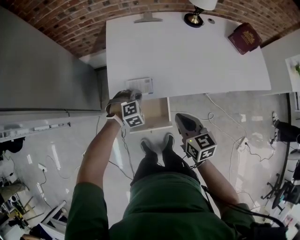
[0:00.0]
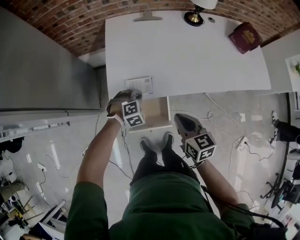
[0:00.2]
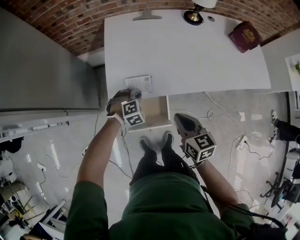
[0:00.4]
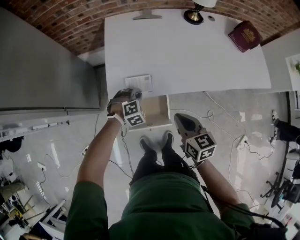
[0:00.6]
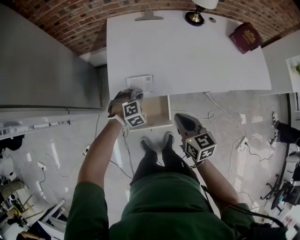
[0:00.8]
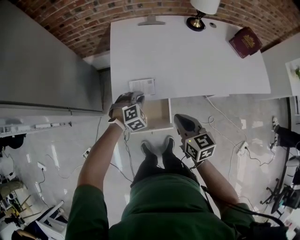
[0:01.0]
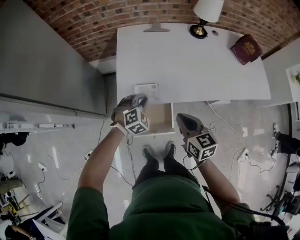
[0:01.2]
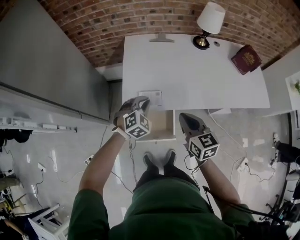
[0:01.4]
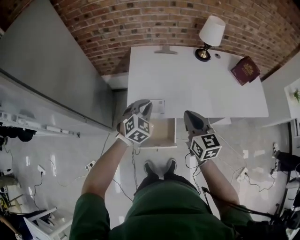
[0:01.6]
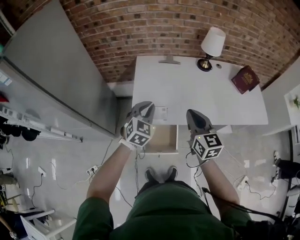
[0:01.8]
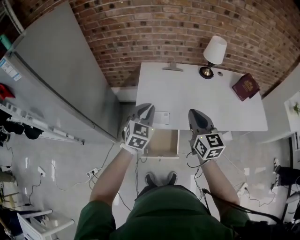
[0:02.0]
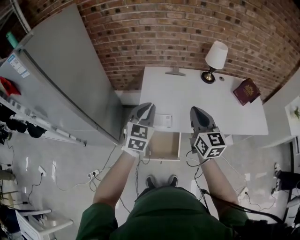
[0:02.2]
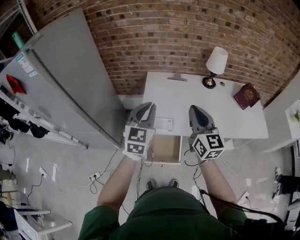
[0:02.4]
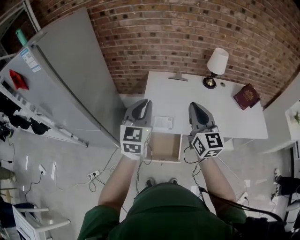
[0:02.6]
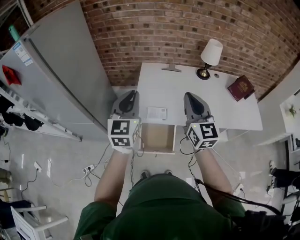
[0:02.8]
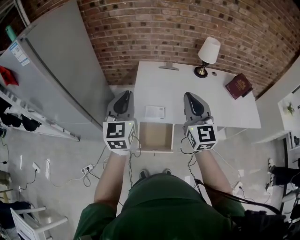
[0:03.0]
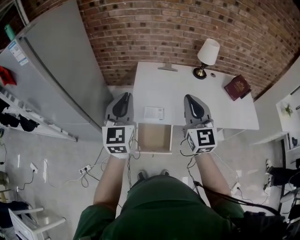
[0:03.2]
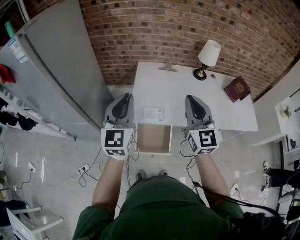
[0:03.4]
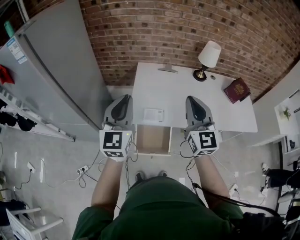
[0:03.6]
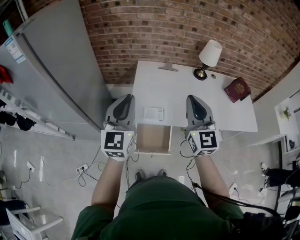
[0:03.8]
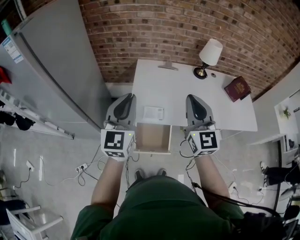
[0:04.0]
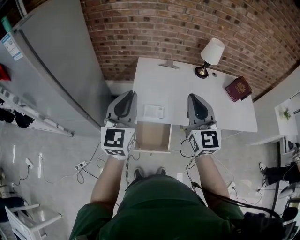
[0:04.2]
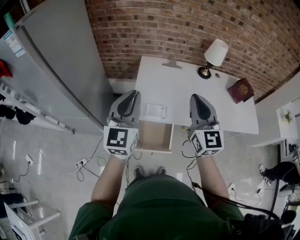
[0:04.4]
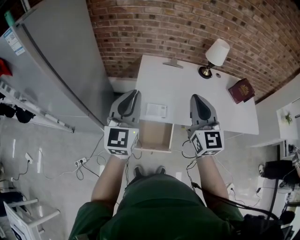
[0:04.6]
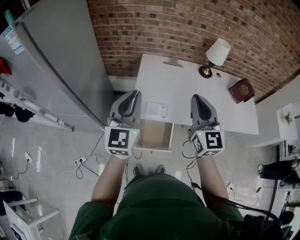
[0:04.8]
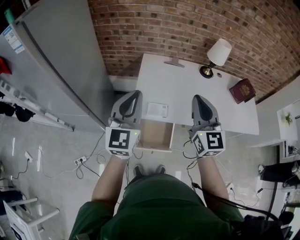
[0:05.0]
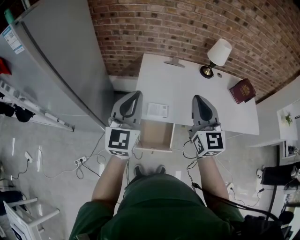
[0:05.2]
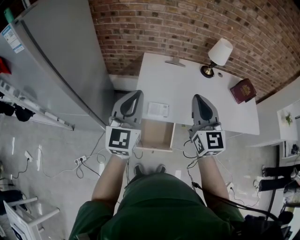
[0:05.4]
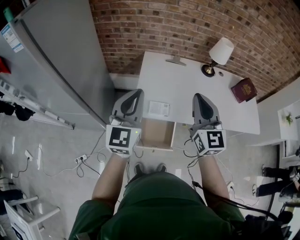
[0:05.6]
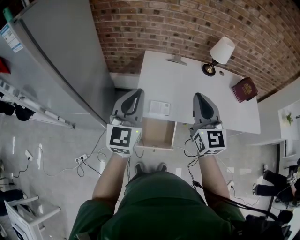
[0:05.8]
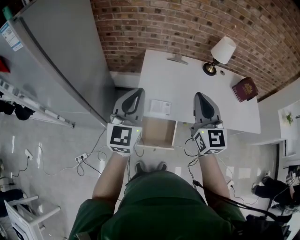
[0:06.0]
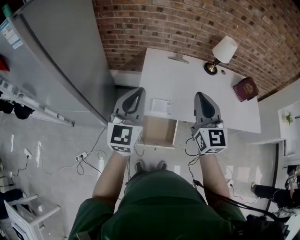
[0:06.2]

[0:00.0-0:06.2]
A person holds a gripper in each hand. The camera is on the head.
0:00.0 to 0:01.6: The right gripper is displaced upward by about 10 cm. Meanwhile the left gripper shifts about 20 cm upward, and turns by some 40 degrees.
0:01.6 to 0:03.2: The left gripper goes about 25 cm upward and to the left, and angles its fingers upward, by some 40 degrees, while the right gripper moves upward, roughly 20 cm, and turns by some 30 degrees.
0:03.2 to 0:04.6: The grippers make only small movements.
0:04.6 to 0:06.2: There are only small adjustments of the grippers.

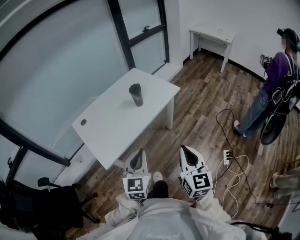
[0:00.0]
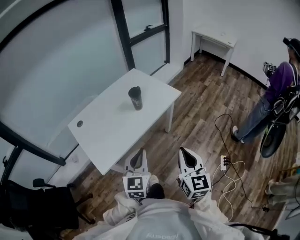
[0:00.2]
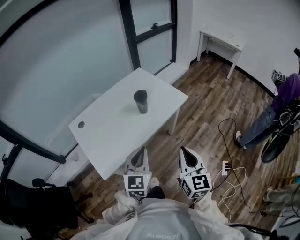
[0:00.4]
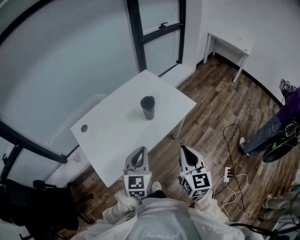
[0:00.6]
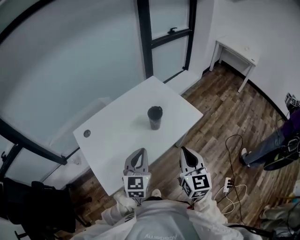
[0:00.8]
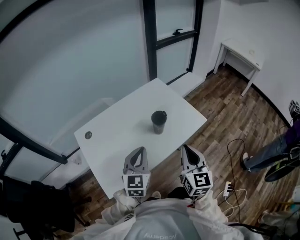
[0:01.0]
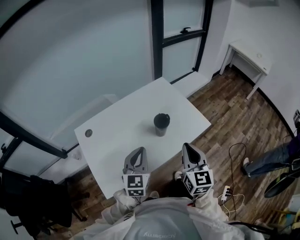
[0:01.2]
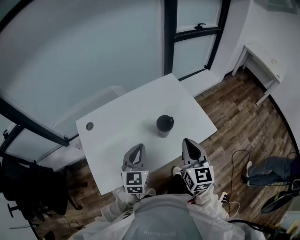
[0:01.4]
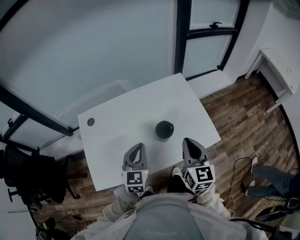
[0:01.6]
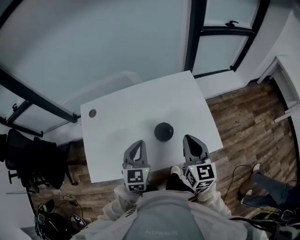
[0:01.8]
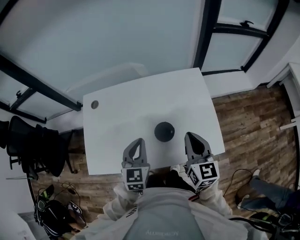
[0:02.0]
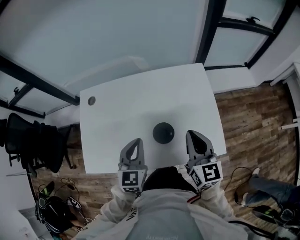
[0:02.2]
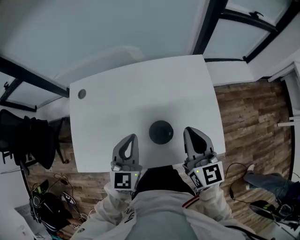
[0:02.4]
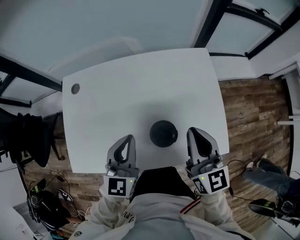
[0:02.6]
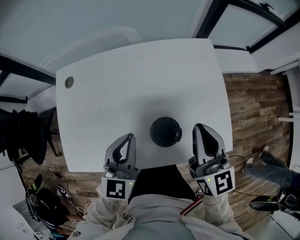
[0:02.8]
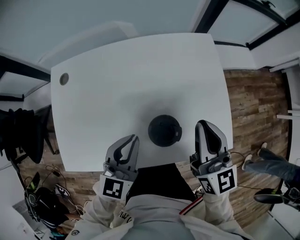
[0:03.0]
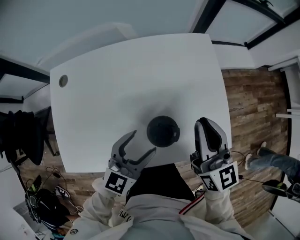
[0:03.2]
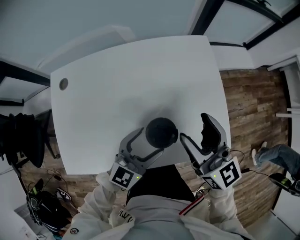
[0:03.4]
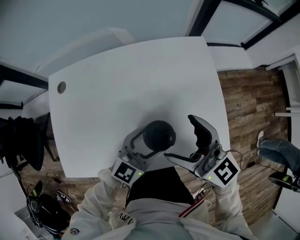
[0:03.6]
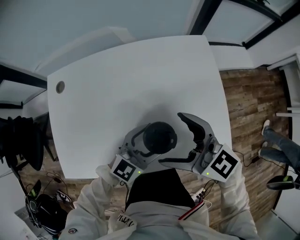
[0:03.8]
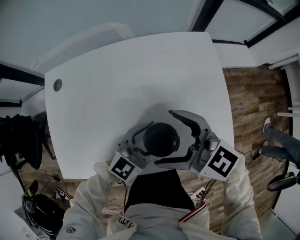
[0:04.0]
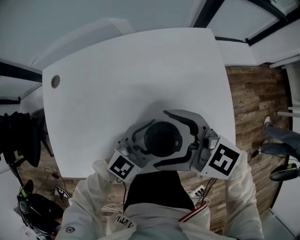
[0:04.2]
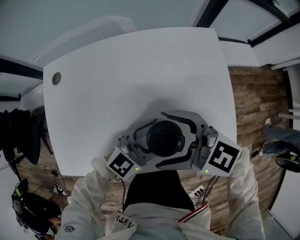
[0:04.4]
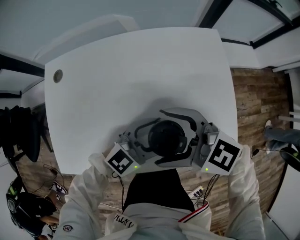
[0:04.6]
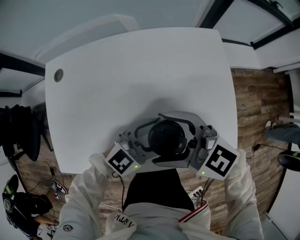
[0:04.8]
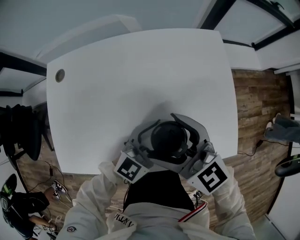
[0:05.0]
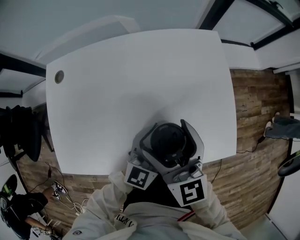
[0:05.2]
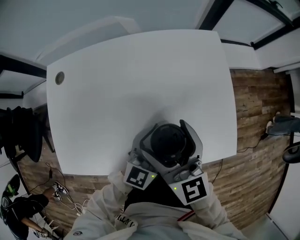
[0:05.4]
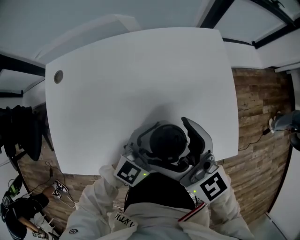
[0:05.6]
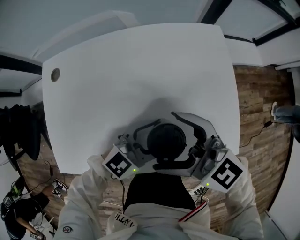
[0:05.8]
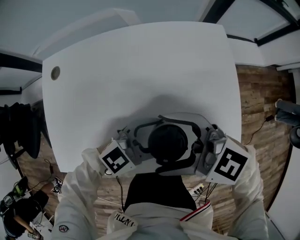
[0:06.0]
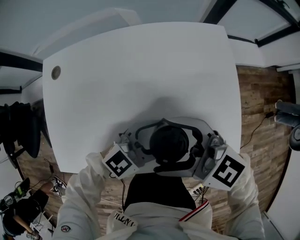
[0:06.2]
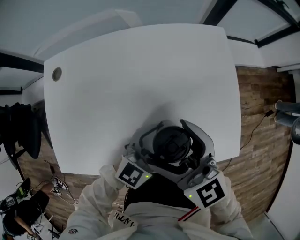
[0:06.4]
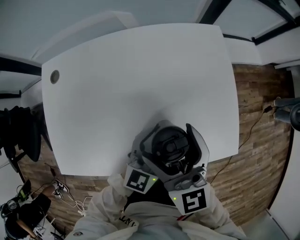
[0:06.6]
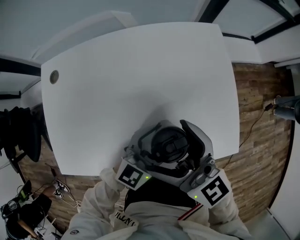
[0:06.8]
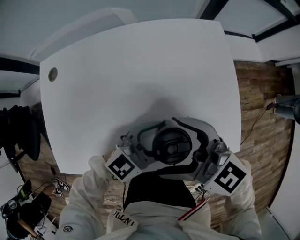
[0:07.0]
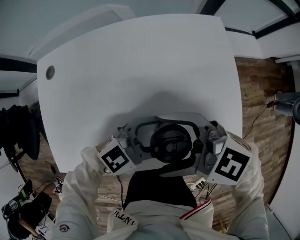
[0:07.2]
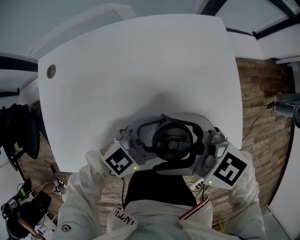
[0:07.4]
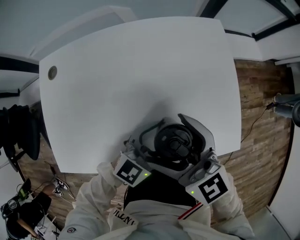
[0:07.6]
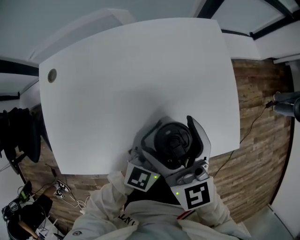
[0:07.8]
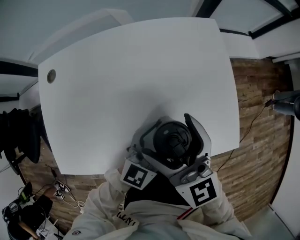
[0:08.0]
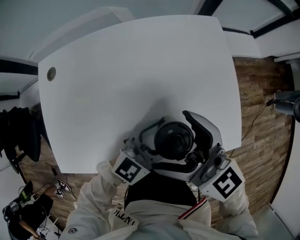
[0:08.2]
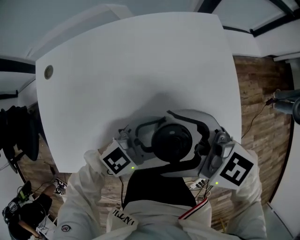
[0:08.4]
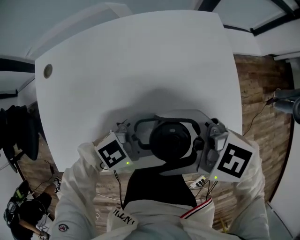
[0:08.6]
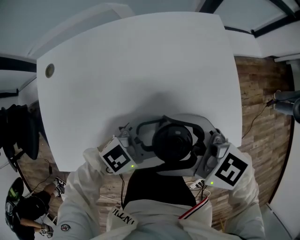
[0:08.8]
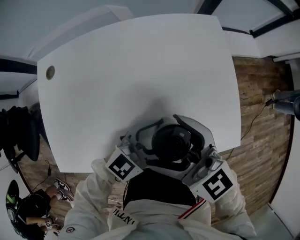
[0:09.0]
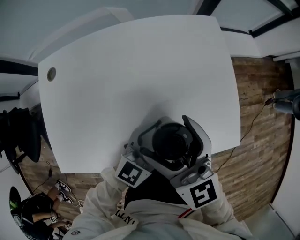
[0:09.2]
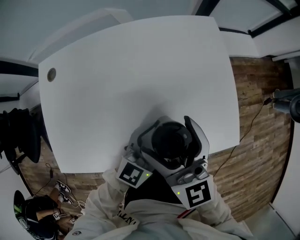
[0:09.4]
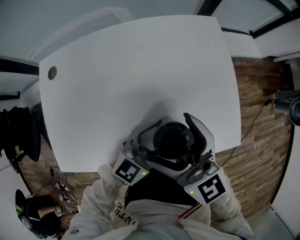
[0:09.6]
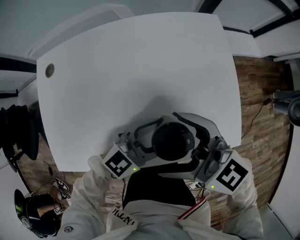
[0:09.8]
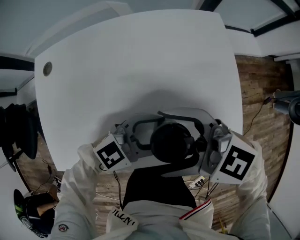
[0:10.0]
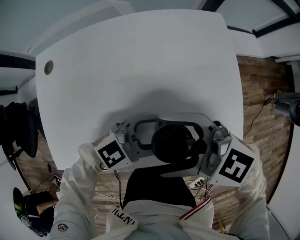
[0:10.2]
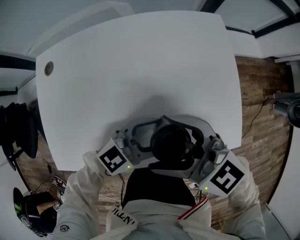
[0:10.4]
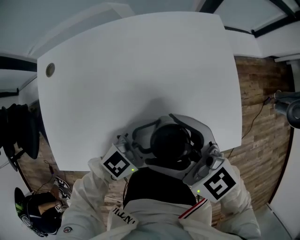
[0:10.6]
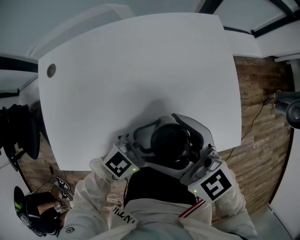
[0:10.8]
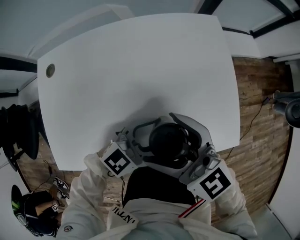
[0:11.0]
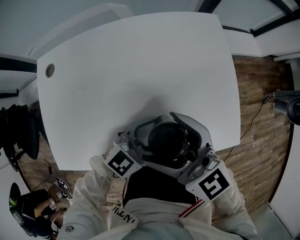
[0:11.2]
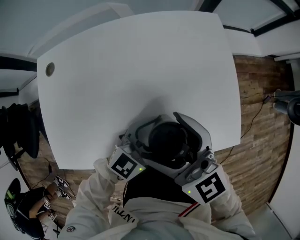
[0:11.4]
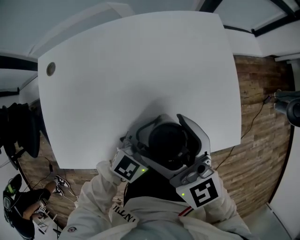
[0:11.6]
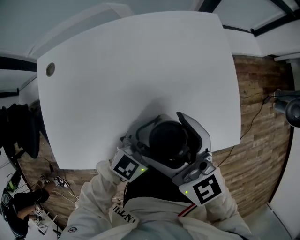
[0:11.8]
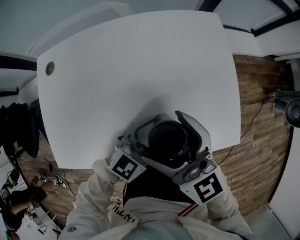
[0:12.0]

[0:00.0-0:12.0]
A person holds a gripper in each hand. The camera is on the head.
0:00.0 to 0:01.6: The two grippers travel together, approximately 50 cm. The left gripper turns by some 30 degrees. The right gripper swivels roughly 30 degrees.
0:01.6 to 0:03.0: The left gripper shifts about 15 cm downward and forward. The right gripper heads forward and downward, covering some 20 cm.
0:03.0 to 0:04.4: The right gripper changes place by approximately 15 cm, changes its angle by about 60 degrees, and opens. The left gripper shifts by some 15 cm, rotates approximately 30 degrees, and opens its fingers.
0:06.0 to 0:07.6: The right gripper changes its angle by about 40 degrees.
0:10.4 to 0:12.0: The right gripper changes its angle by about 30 degrees.

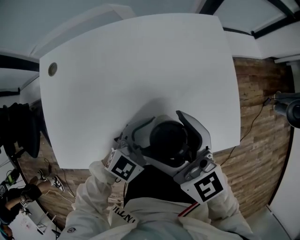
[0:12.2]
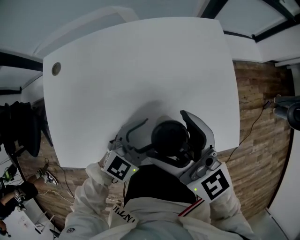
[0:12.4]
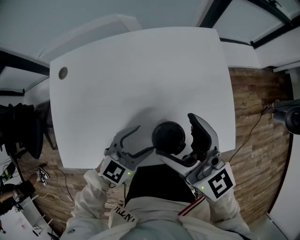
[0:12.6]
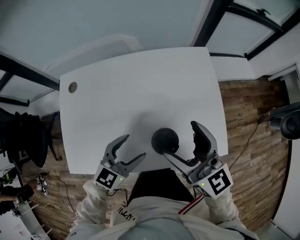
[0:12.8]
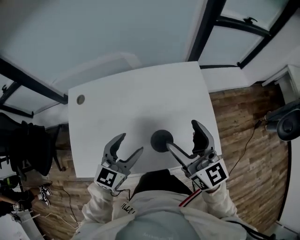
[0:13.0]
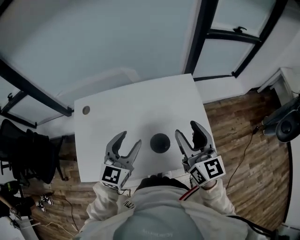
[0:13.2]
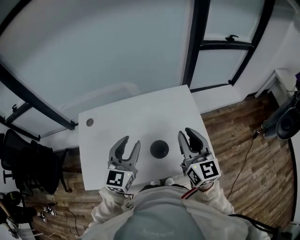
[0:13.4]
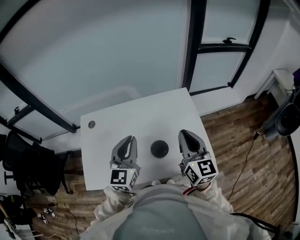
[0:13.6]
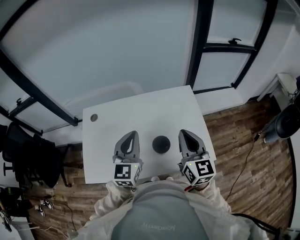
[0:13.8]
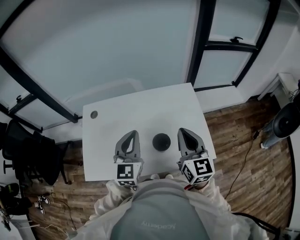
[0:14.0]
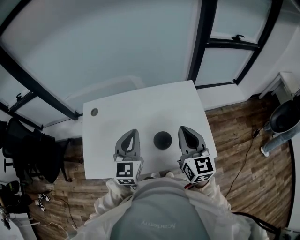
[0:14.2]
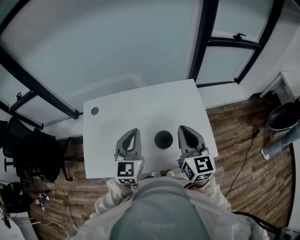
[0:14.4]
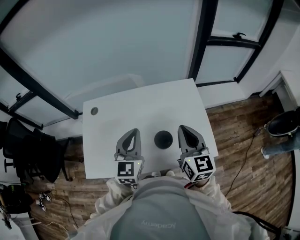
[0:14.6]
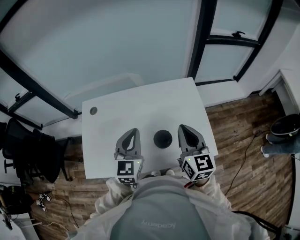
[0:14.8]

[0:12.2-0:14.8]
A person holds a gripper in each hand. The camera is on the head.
0:12.2 to 0:13.4: The left gripper is displaced upward by about 30 cm, rotates some 40 degrees, and closes its fingers, while the right gripper goes roughly 25 cm upward and to the right, changes its angle by approximately 30 degrees, and closes up.
0:13.4 to 0:14.8: The left gripper closes.

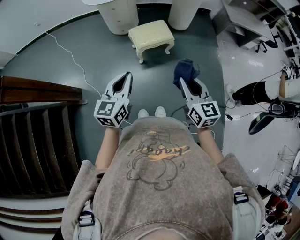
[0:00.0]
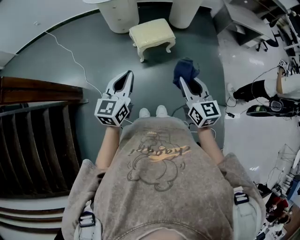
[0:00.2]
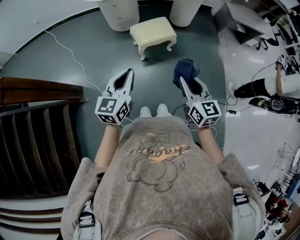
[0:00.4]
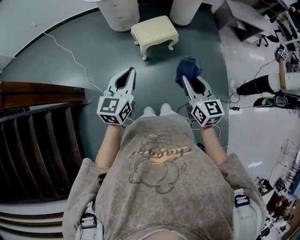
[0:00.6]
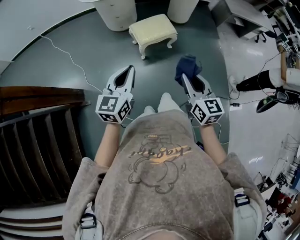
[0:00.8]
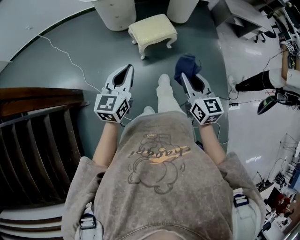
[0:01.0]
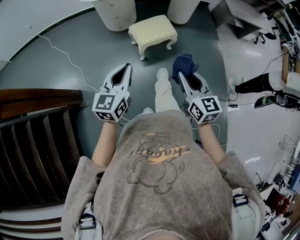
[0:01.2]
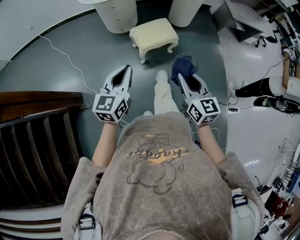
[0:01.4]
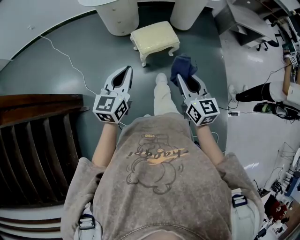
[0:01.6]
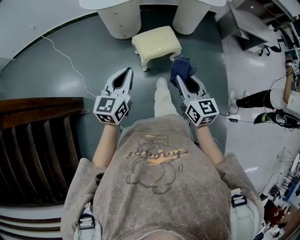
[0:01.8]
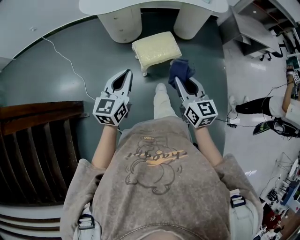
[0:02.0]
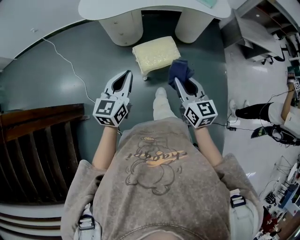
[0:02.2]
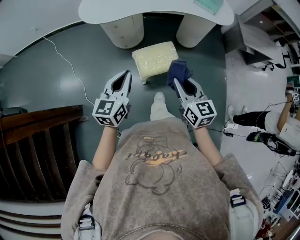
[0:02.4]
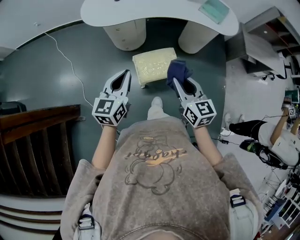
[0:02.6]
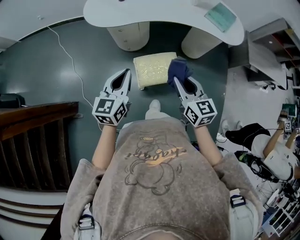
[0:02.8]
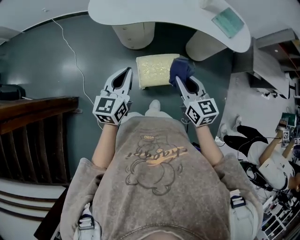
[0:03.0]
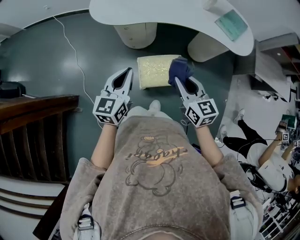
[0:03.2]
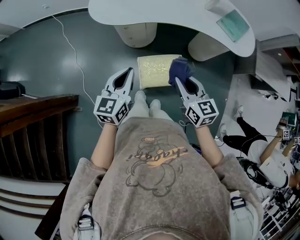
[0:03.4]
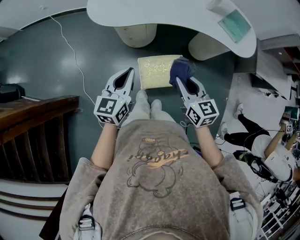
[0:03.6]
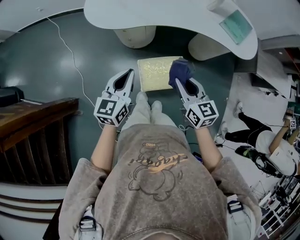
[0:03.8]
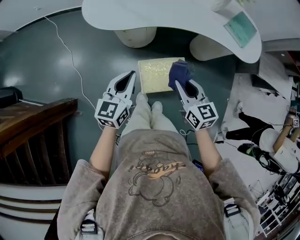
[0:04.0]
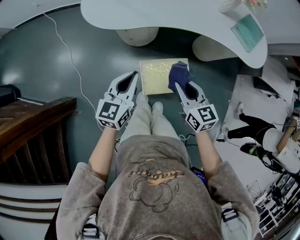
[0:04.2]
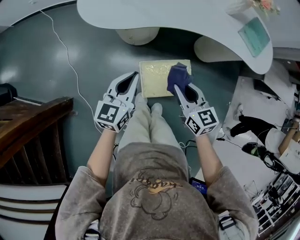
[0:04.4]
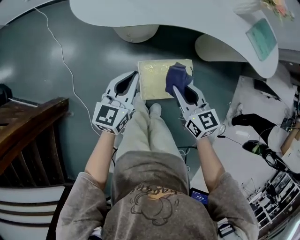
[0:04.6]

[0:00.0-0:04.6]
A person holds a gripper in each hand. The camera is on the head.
0:00.0 to 0:01.6: Both grippers move forward and to the left, about 10 cm.
0:01.6 to 0:03.0: The two grippers go roughly 30 cm forward.
0:03.0 to 0:04.6: The left gripper heads downward and forward, covering some 20 cm. Meanwhile the right gripper travels downward, forward and to the left by roughly 20 cm.
